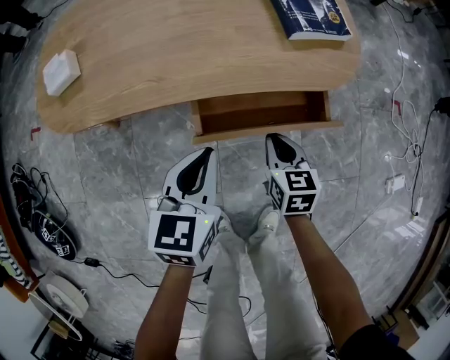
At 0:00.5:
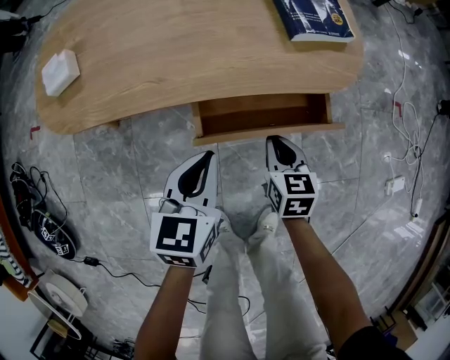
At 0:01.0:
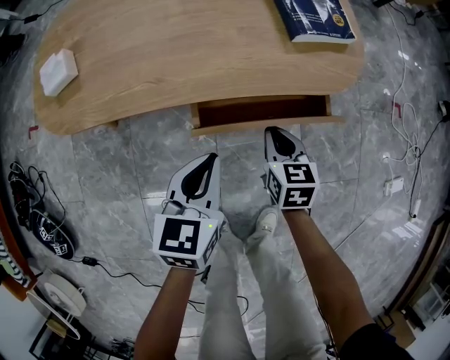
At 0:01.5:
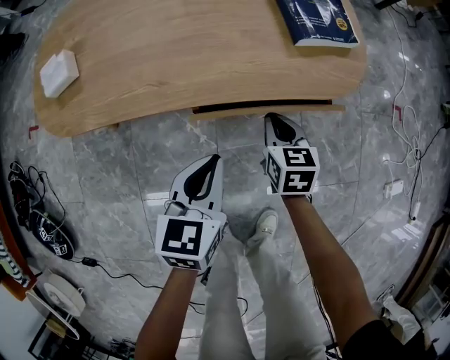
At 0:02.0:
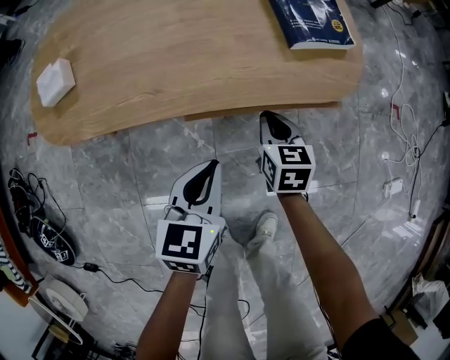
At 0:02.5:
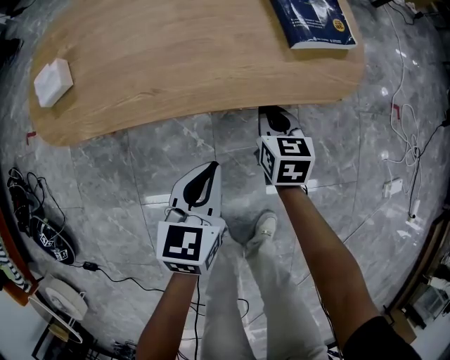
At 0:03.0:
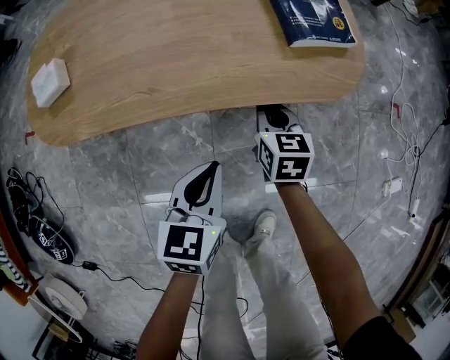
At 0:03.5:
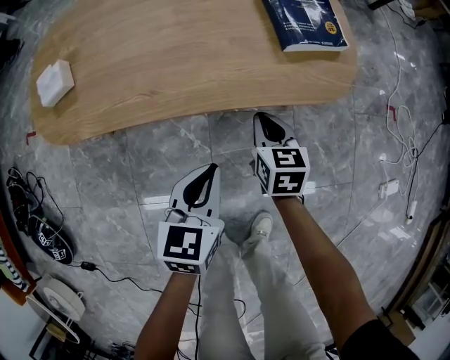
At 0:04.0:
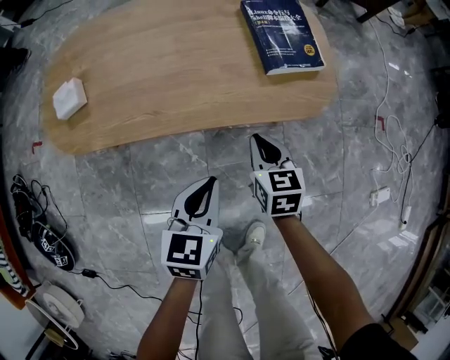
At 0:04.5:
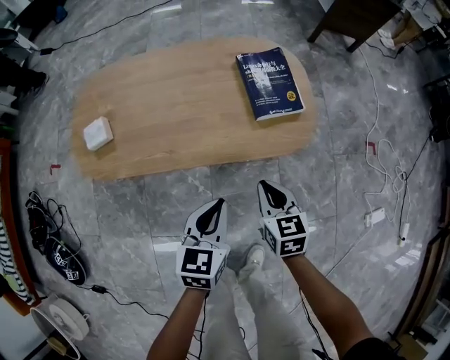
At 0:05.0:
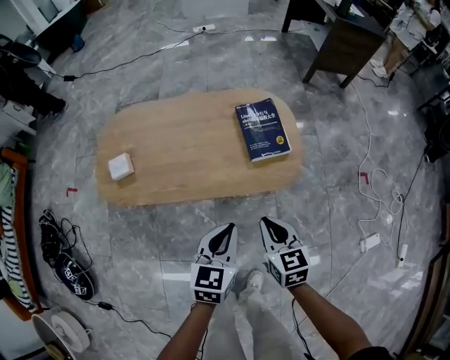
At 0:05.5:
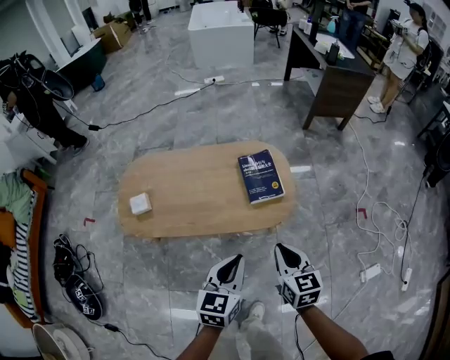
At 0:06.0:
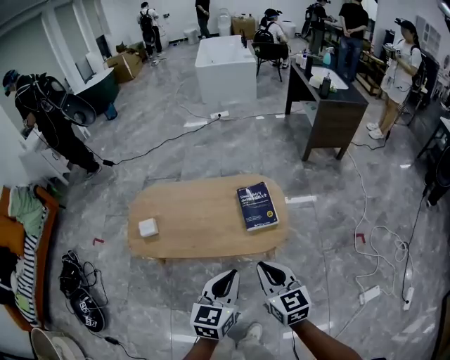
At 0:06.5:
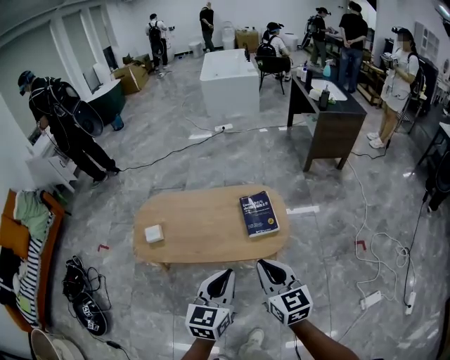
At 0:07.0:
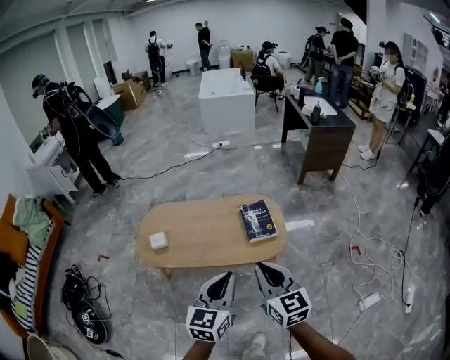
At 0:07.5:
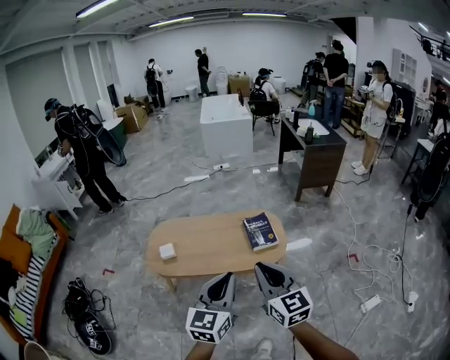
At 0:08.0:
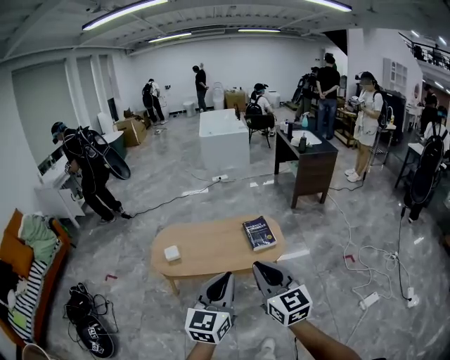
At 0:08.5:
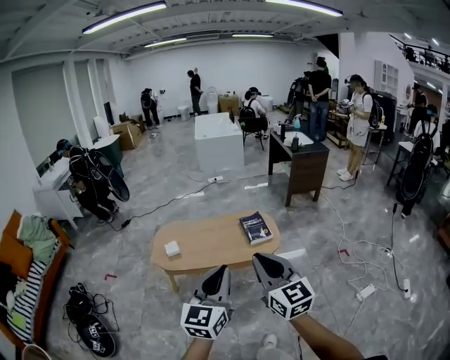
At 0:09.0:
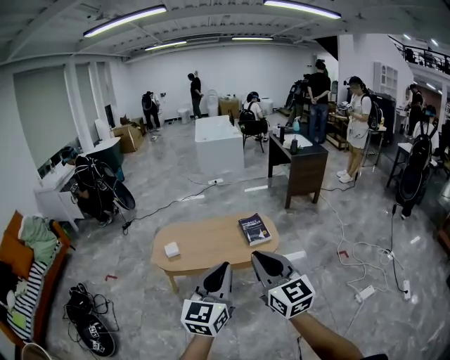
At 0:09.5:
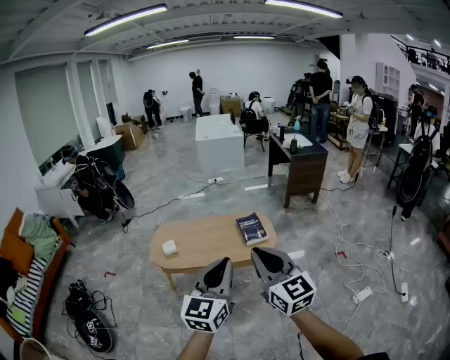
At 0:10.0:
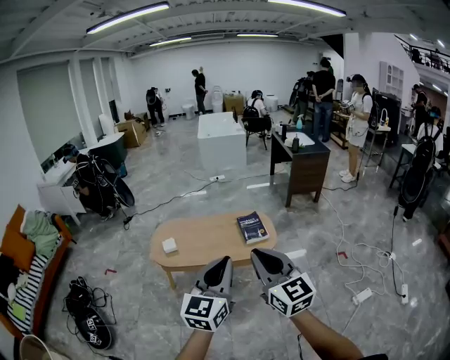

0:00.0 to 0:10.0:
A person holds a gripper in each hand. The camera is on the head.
0:00.0 to 0:02.0: The right gripper shifts about 10 cm forward.
0:02.0 to 0:04.0: The two grippers go roughly 5 cm upward.
0:04.0 to 0:06.0: The two grippers go some 40 cm upward. The right gripper changes its angle by about 20 degrees.
0:06.0 to 0:08.0: The grippers both shift backward, upward and to the left by about 35 cm. The left gripper changes its angle by approximately 20 degrees. The right gripper rotates roughly 20 degrees.
0:08.0 to 0:10.0: The grippers both shift backward and upward by roughly 10 cm.

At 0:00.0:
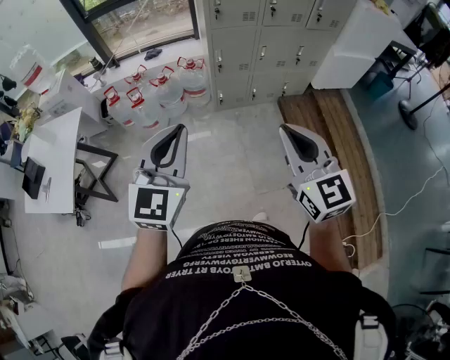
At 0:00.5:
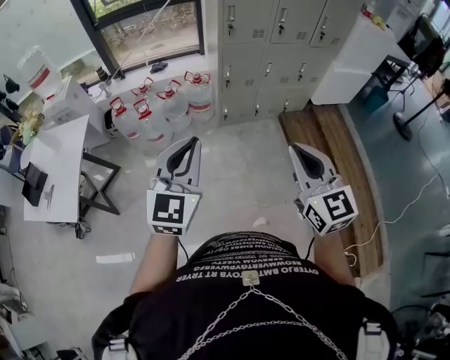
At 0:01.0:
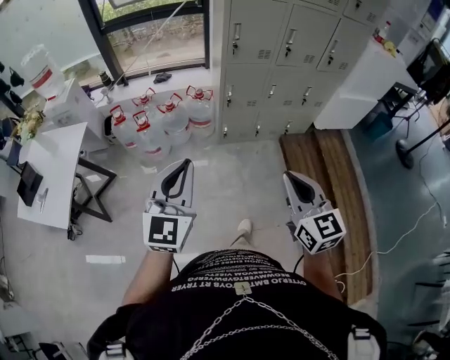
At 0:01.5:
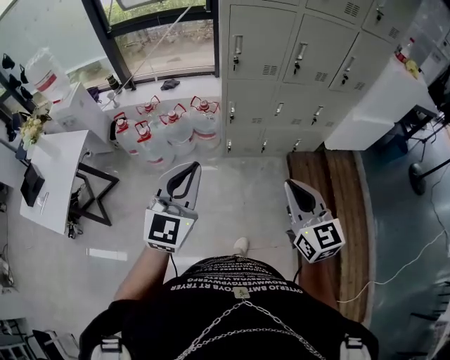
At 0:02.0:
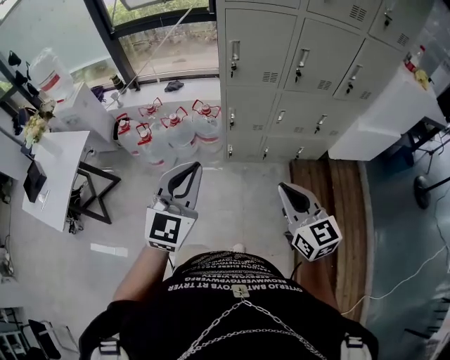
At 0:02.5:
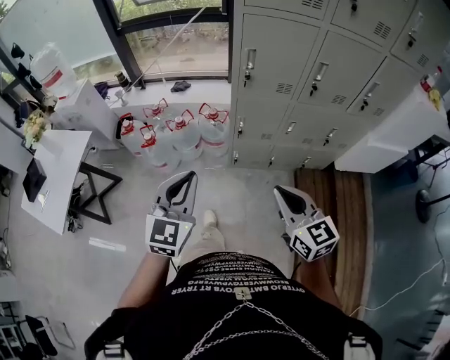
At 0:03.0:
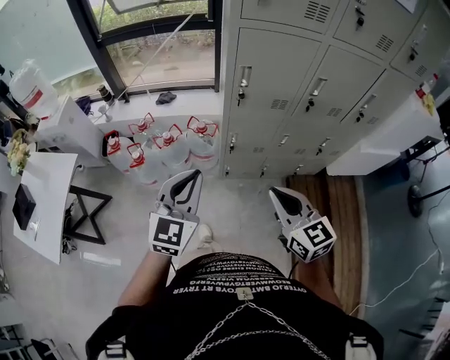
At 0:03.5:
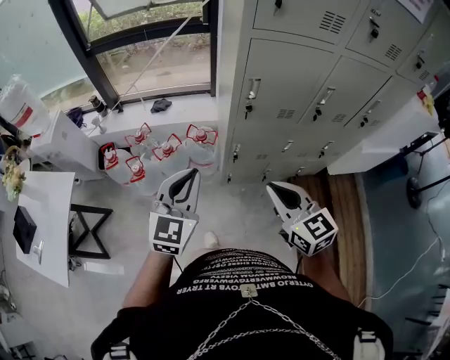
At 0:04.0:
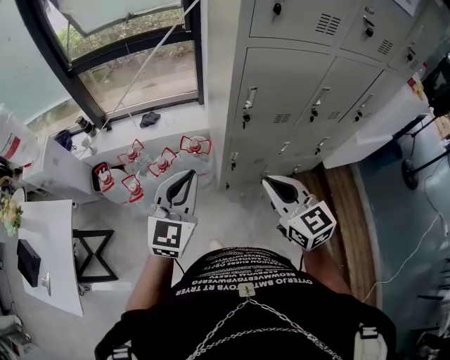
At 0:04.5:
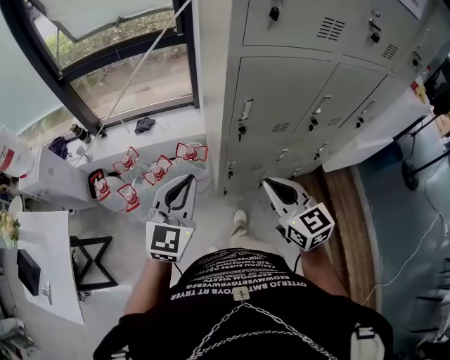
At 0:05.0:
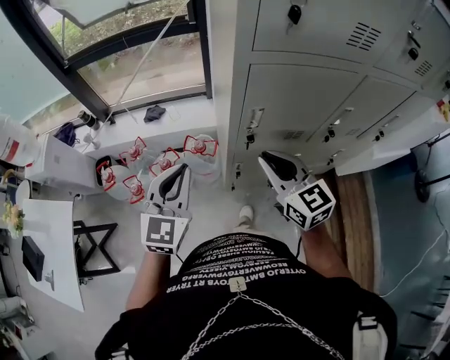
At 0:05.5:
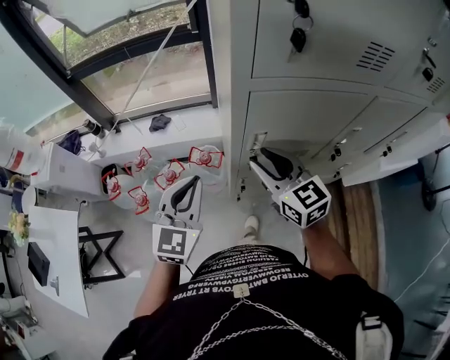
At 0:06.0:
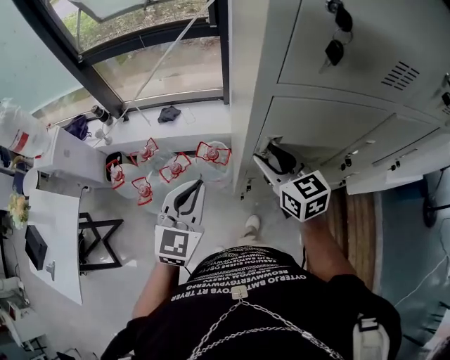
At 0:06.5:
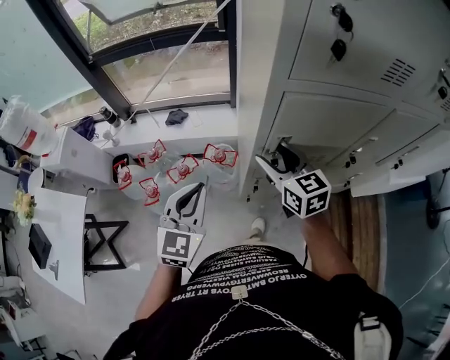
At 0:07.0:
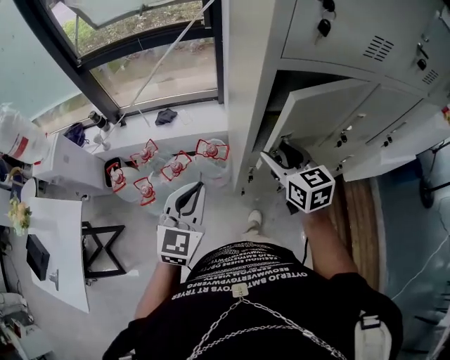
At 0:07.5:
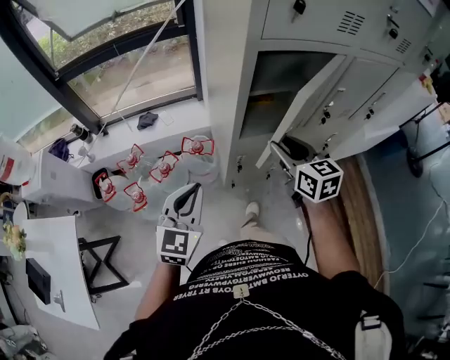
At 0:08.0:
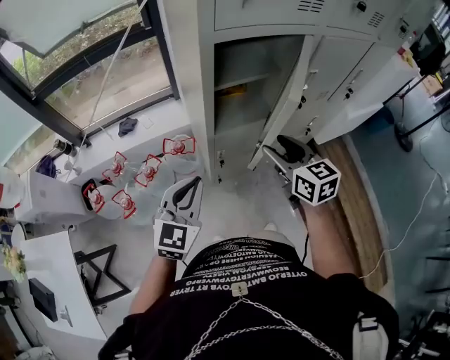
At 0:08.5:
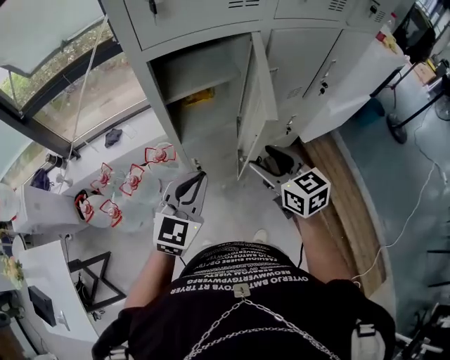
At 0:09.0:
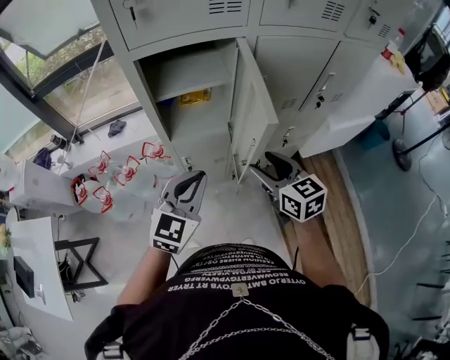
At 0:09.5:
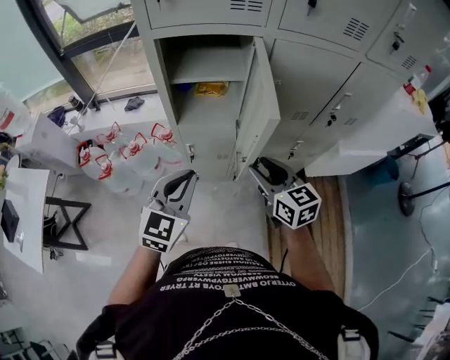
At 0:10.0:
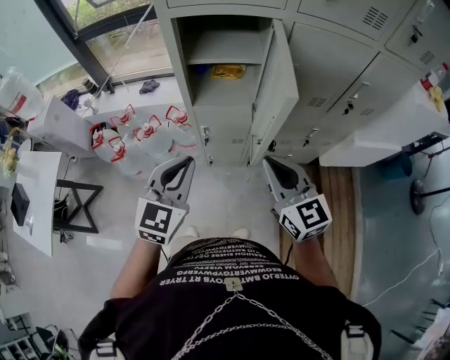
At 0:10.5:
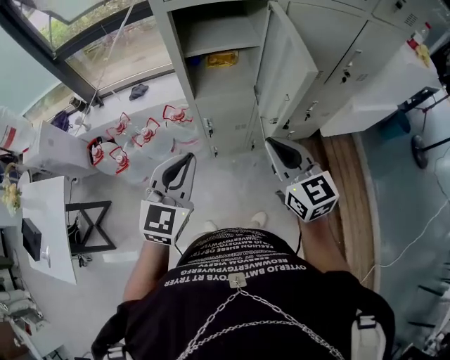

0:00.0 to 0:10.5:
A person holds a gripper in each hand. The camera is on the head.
0:00.0 to 0:02.0: Both grippers move forward and to the right, approximately 25 cm.
0:02.0 to 0:04.0: The left gripper is displaced forward by about 35 cm, while the right gripper is displaced forward and to the left by approximately 35 cm.
0:04.0 to 0:06.5: The left gripper heads forward, covering approximately 15 cm. The right gripper heads forward, covering about 25 cm, and opens up.
0:06.5 to 0:08.5: The right gripper moves to the right and backward, roughly 25 cm, and closes, then reopens; the left gripper shifts roughly 20 cm to the right, and rotates some 30 degrees.
0:08.5 to 0:10.5: Both grippers move backward, about 10 cm. The right gripper closes its fingers.

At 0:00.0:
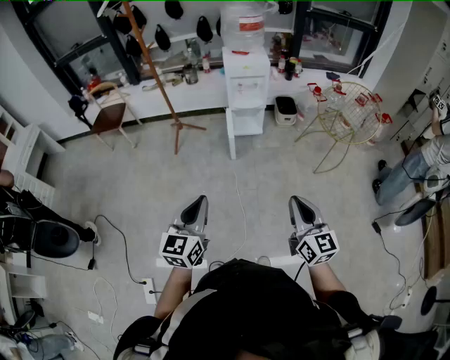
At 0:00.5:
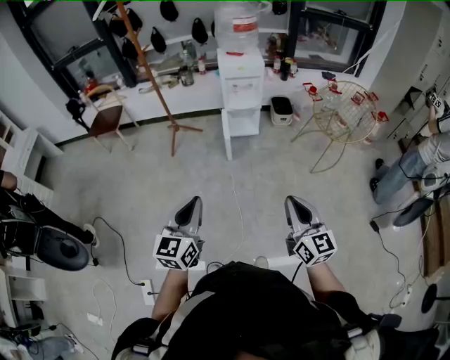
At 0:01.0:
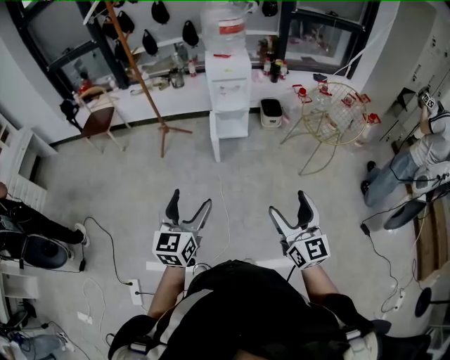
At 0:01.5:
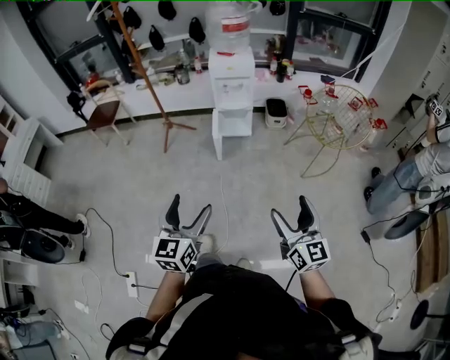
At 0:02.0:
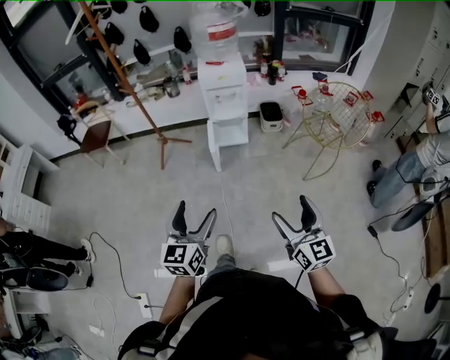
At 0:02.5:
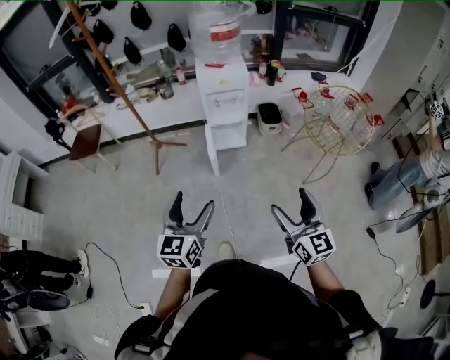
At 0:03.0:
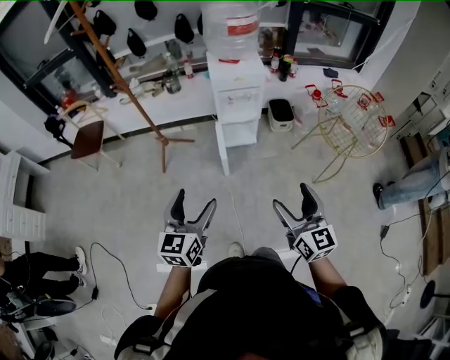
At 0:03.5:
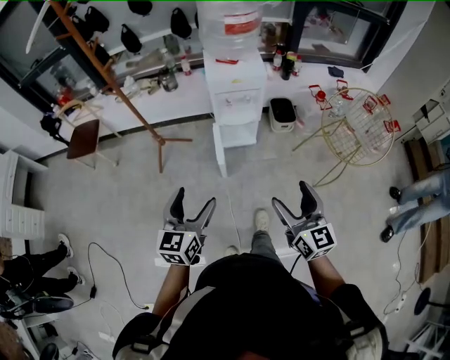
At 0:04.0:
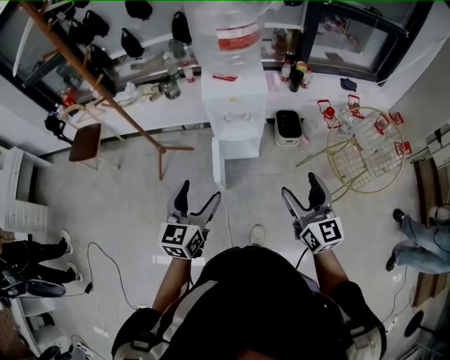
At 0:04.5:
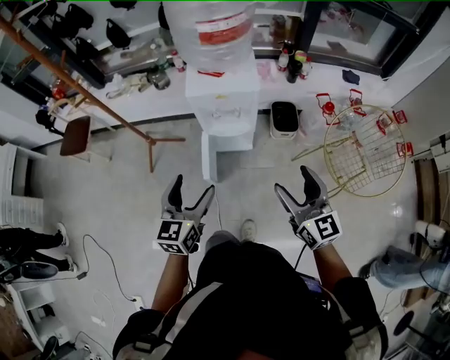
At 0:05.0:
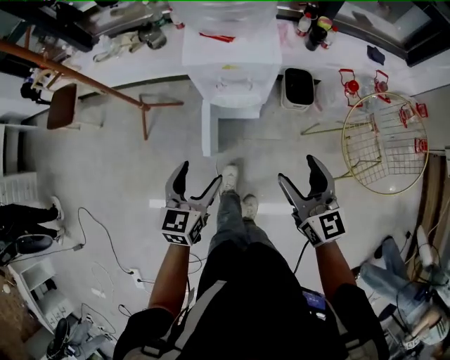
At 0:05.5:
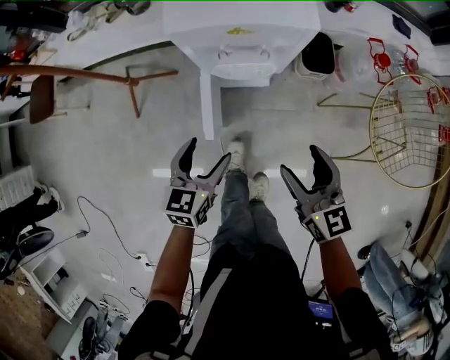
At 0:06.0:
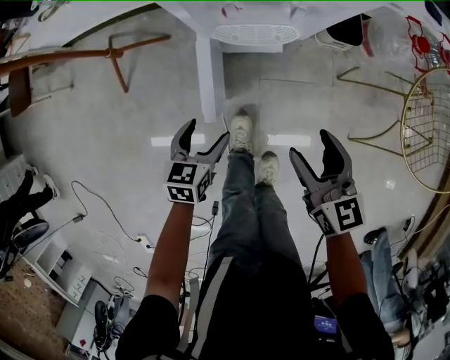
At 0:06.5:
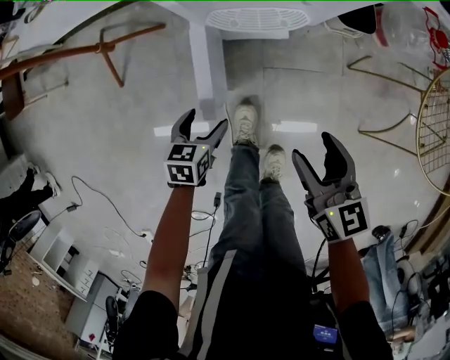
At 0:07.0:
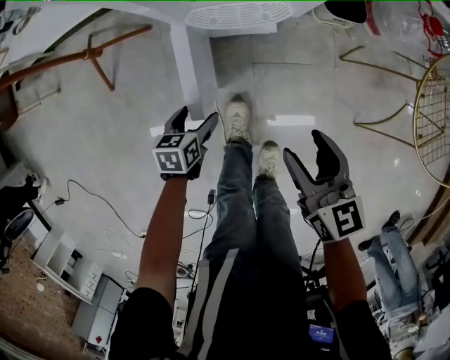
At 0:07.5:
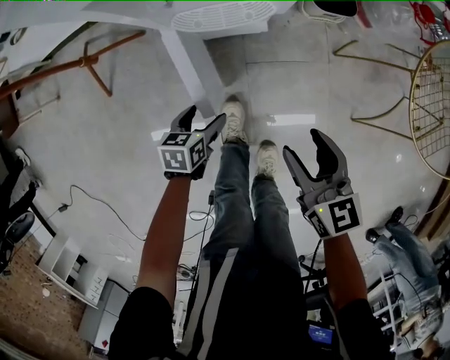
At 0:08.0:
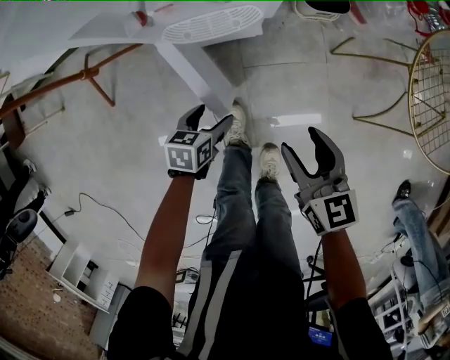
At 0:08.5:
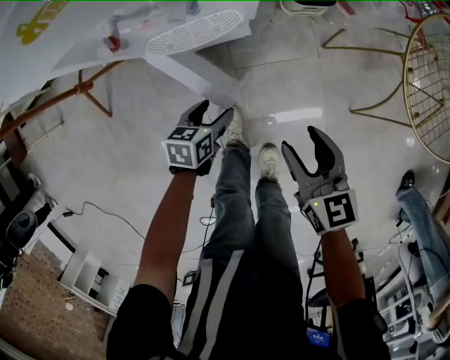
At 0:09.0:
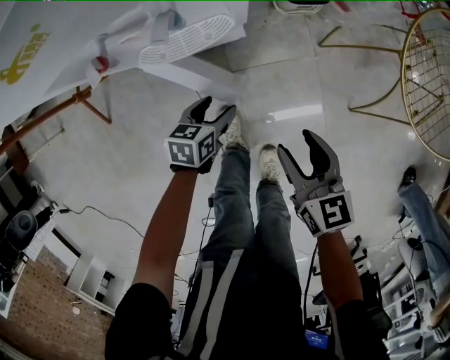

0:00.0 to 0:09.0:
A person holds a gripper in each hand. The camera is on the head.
0:00.0 to 0:02.0: The two grippers go approximately 10 cm to the right and forward. The left gripper opens up; the right gripper opens its fingers.
0:02.0 to 0:04.5: The pair of grippers is taken forward, about 50 cm.
0:04.5 to 0:07.0: The two grippers go about 50 cm downward. The right gripper changes its angle by approximately 30 degrees. The left gripper points its fingers roughly 40 degrees further downward.
0:07.0 to 0:09.0: The left gripper heads to the right and forward, covering approximately 15 cm. Meanwhile the right gripper is displaced to the right by about 5 cm.
